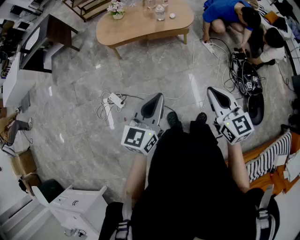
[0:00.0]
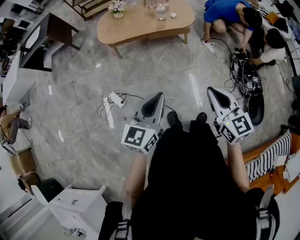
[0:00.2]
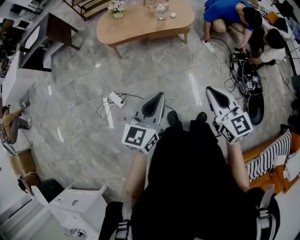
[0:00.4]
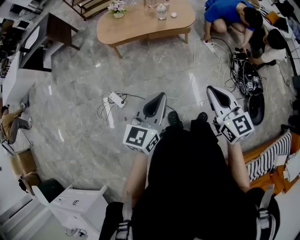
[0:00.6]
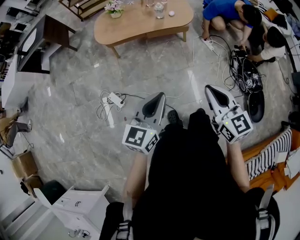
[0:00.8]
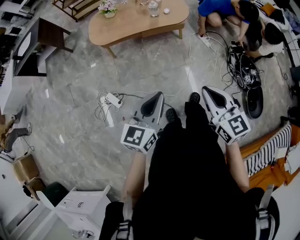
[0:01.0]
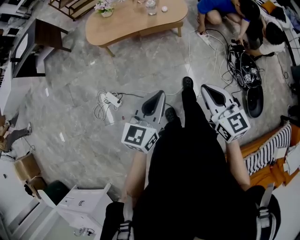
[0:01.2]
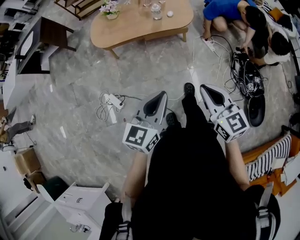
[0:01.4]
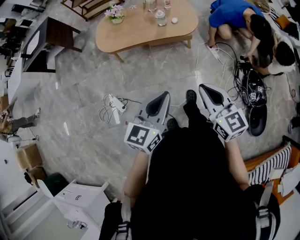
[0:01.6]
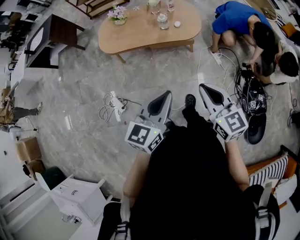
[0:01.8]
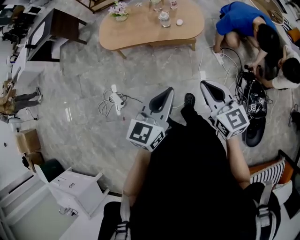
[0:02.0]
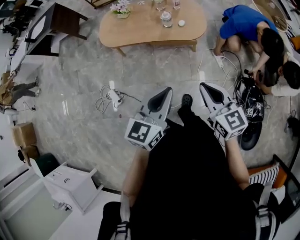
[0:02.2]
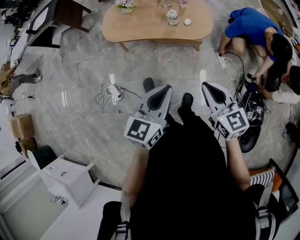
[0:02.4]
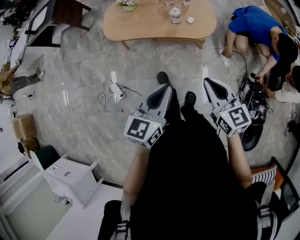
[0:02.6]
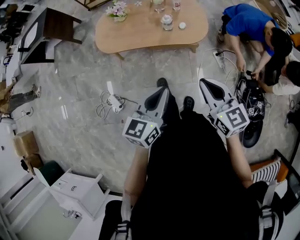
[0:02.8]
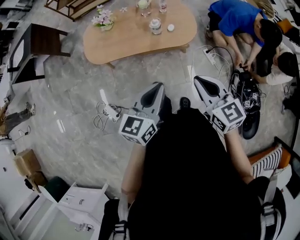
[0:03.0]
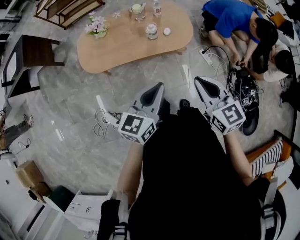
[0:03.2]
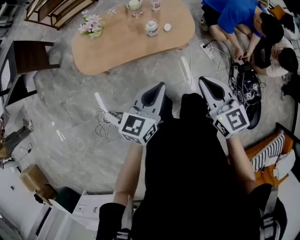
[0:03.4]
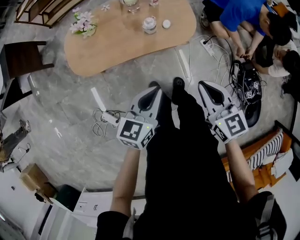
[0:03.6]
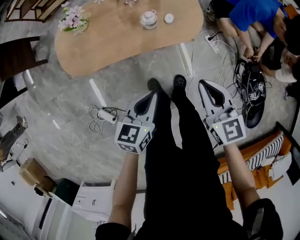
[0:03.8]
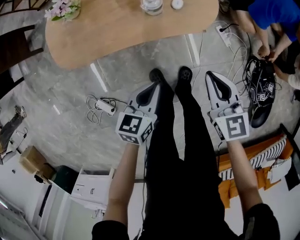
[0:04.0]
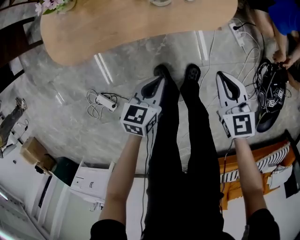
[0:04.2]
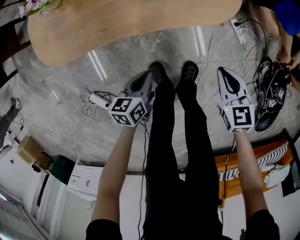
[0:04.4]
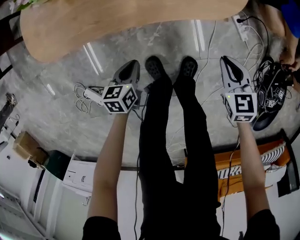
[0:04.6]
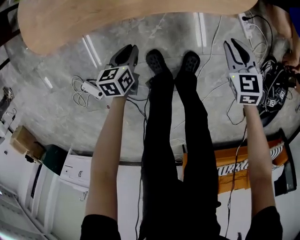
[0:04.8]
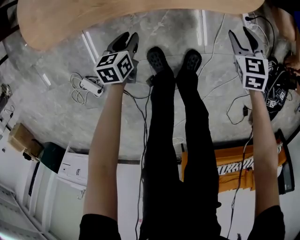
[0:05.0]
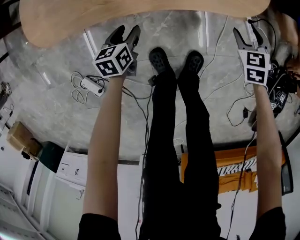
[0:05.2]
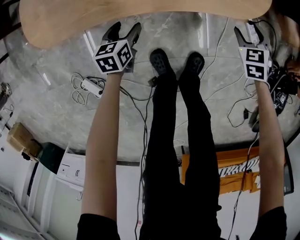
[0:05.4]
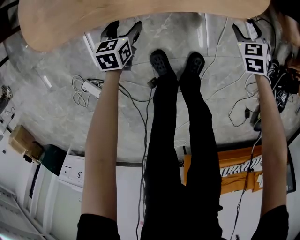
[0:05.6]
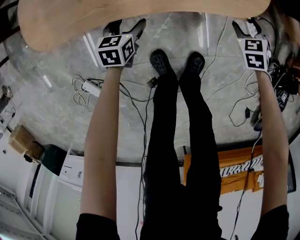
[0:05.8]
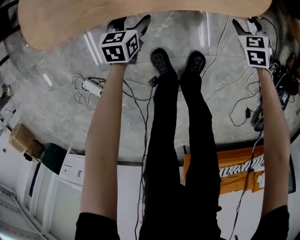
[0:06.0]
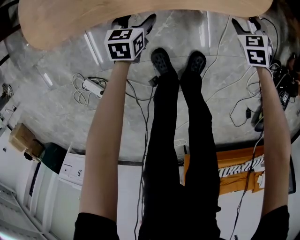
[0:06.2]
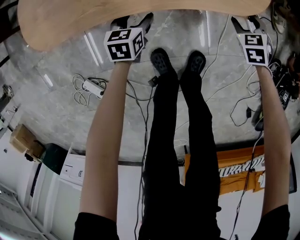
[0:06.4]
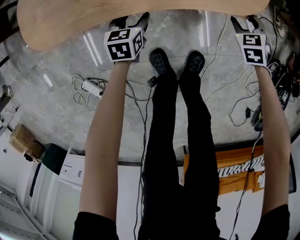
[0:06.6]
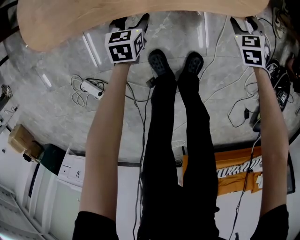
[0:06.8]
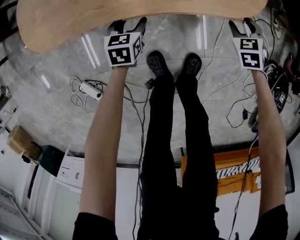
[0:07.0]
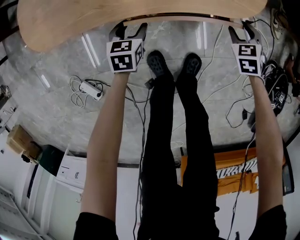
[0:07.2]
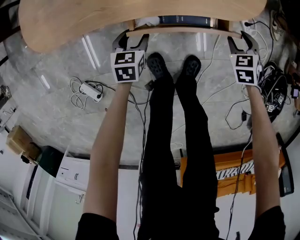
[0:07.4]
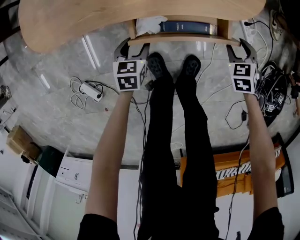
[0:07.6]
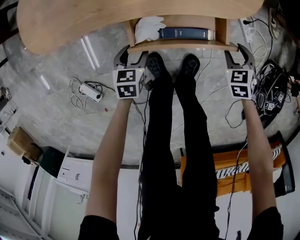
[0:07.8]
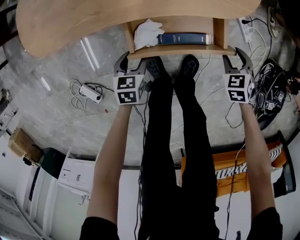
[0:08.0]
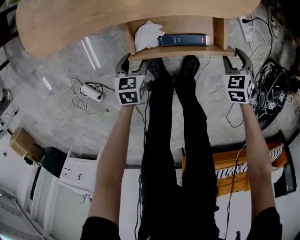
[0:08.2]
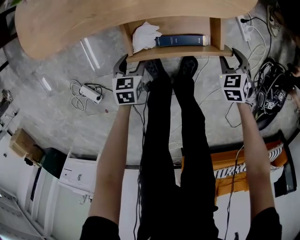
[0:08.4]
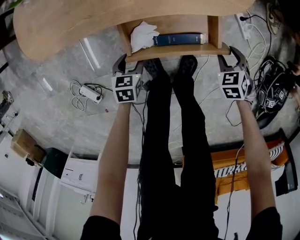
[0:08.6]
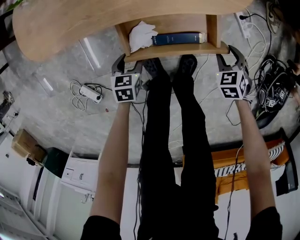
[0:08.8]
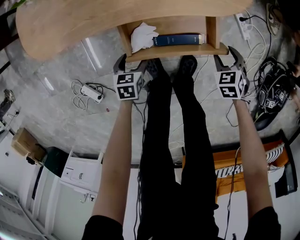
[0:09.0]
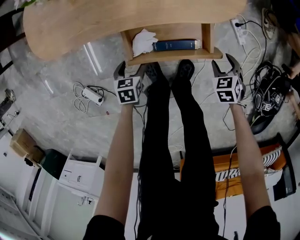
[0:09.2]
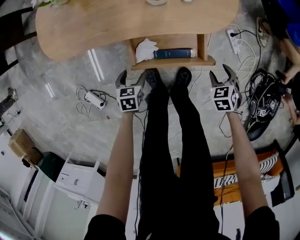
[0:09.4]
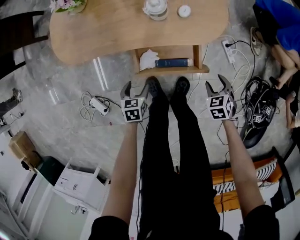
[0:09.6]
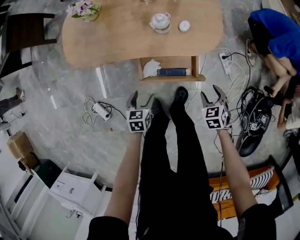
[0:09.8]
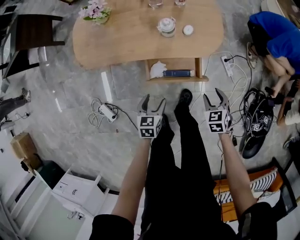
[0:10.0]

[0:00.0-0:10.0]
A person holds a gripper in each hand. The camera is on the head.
0:00.0 to 0:01.4: The right gripper is displaced forward by roughly 10 cm. Meanwhile the left gripper moves forward and to the right, roughly 10 cm.
0:01.4 to 0:02.8: Both grippers travel together forward, roughly 25 cm.
0:02.8 to 0:04.2: The two grippers go roughly 50 cm downward and forward. The right gripper turns by some 20 degrees, while the left gripper rotates about 30 degrees.
0:04.2 to 0:05.8: The right gripper shifts approximately 30 cm downward and forward, swivels roughly 40 degrees, and opens its fingers. Meanwhile the left gripper goes roughly 30 cm downward, to the left and forward, and opens its fingers.
0:05.8 to 0:07.2: The grippers make only small movements.
0:07.2 to 0:08.6: Both grippers travel together backward, about 10 cm.
0:08.6 to 0:10.0: Both grippers travel together upward, some 25 cm.

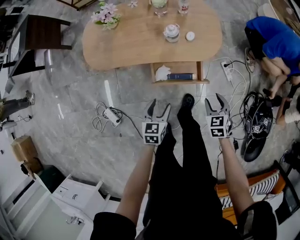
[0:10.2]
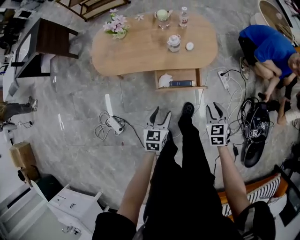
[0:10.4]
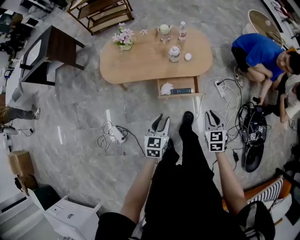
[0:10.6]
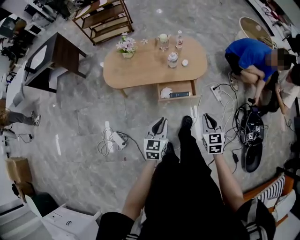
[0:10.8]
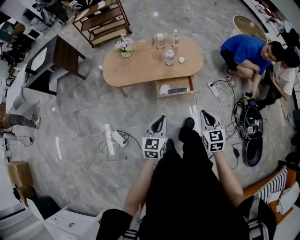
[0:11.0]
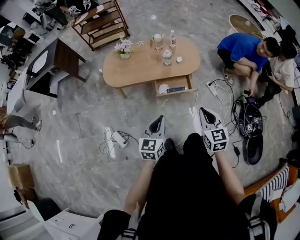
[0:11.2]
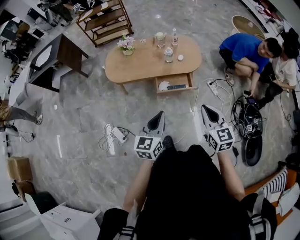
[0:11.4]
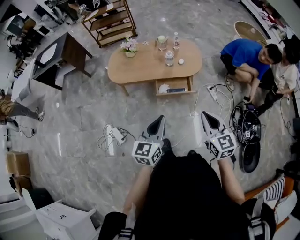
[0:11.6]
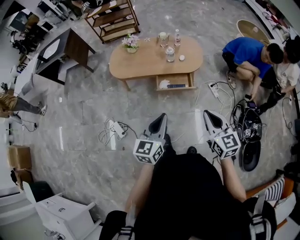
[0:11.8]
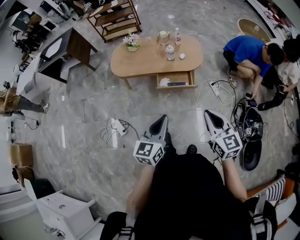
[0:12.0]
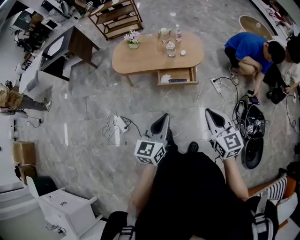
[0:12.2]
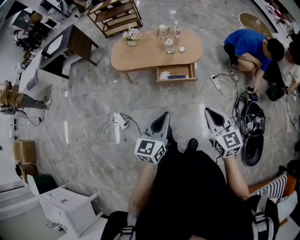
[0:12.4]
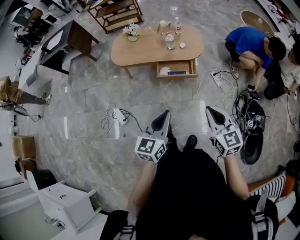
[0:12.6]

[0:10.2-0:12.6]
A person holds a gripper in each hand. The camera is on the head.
0:10.2 to 0:11.4: The two grippers go about 40 cm upward and backward. The left gripper swivels some 30 degrees, and closes. Meanwhile the right gripper tilts its fingers approximately 30 degrees upward, and closes up.
0:11.4 to 0:12.6: The grippers both shift backward and to the right by about 15 cm.

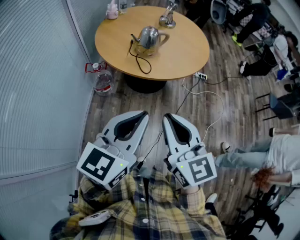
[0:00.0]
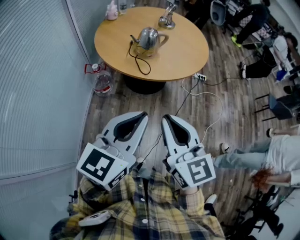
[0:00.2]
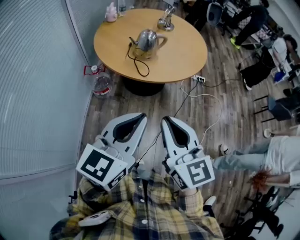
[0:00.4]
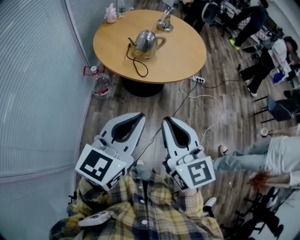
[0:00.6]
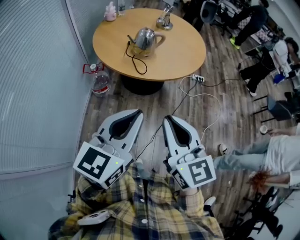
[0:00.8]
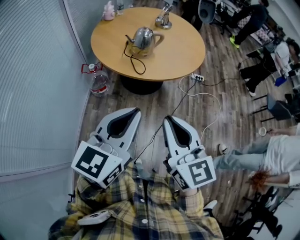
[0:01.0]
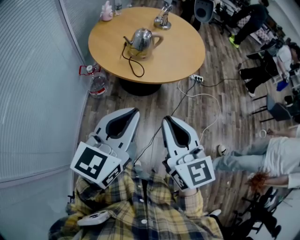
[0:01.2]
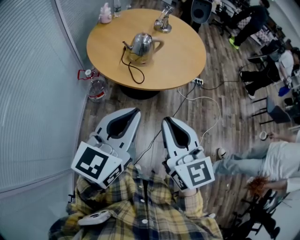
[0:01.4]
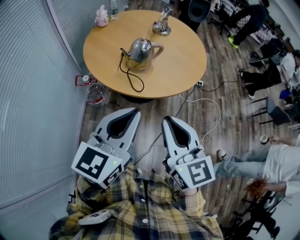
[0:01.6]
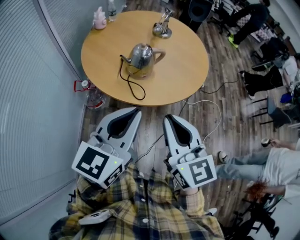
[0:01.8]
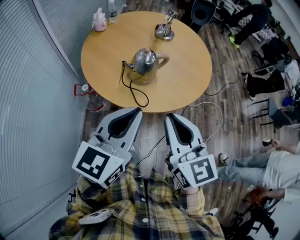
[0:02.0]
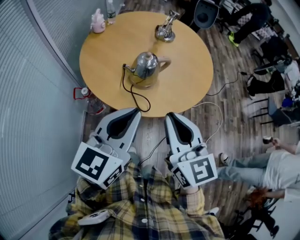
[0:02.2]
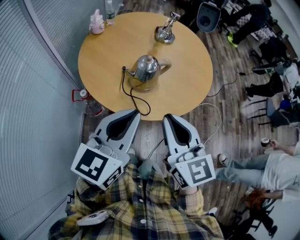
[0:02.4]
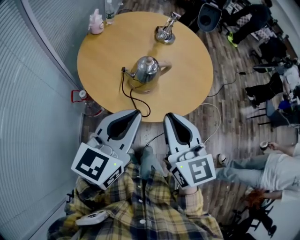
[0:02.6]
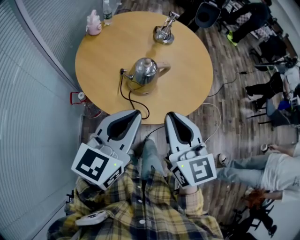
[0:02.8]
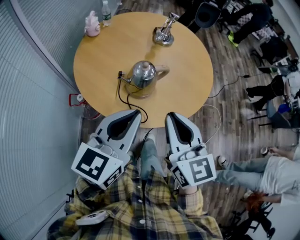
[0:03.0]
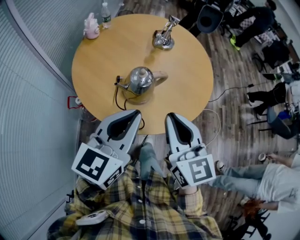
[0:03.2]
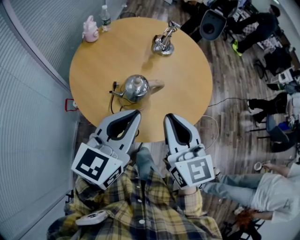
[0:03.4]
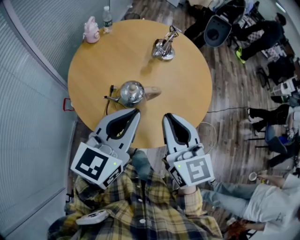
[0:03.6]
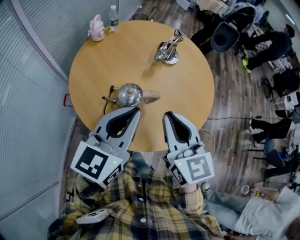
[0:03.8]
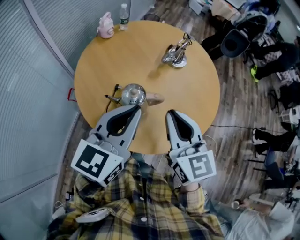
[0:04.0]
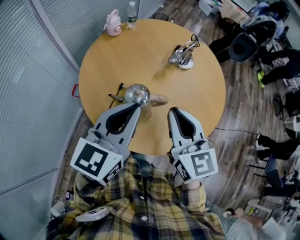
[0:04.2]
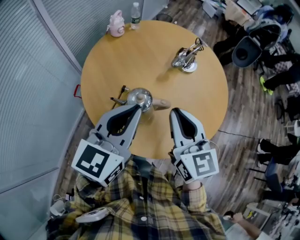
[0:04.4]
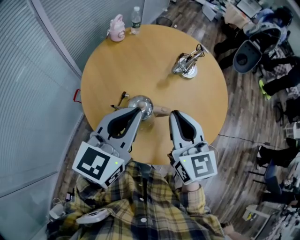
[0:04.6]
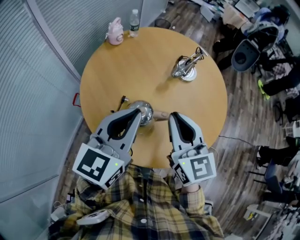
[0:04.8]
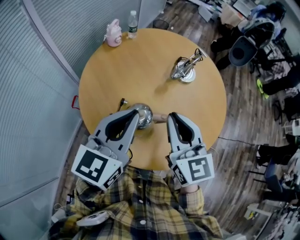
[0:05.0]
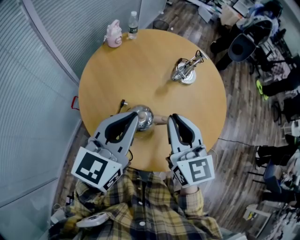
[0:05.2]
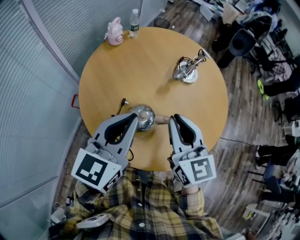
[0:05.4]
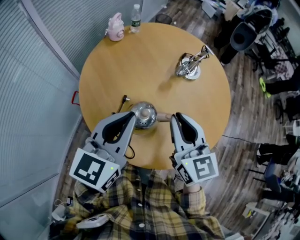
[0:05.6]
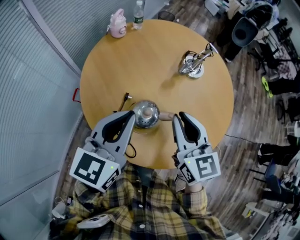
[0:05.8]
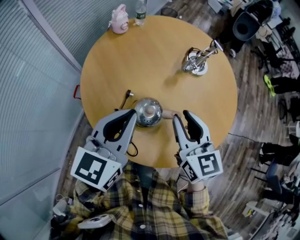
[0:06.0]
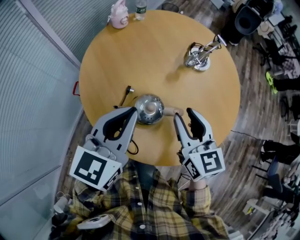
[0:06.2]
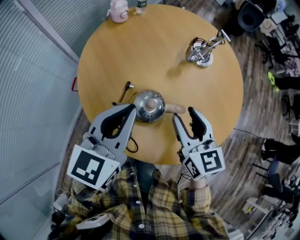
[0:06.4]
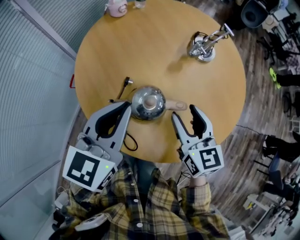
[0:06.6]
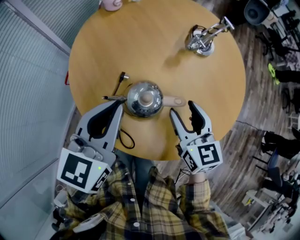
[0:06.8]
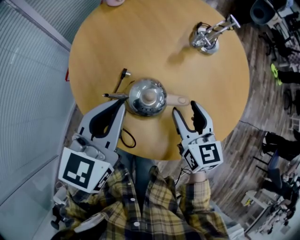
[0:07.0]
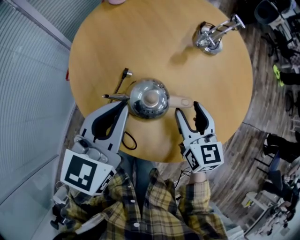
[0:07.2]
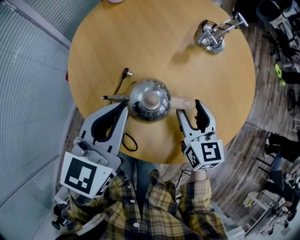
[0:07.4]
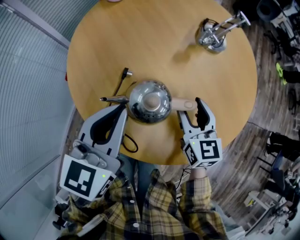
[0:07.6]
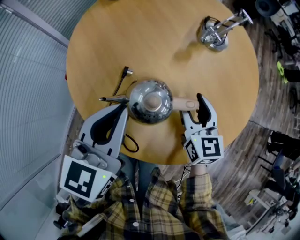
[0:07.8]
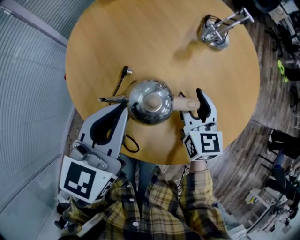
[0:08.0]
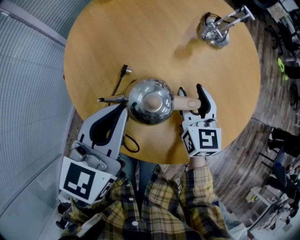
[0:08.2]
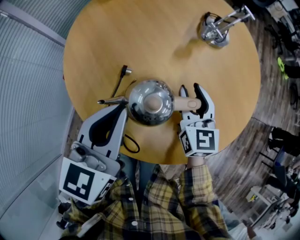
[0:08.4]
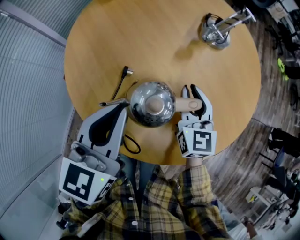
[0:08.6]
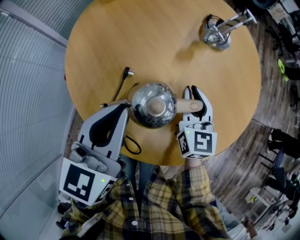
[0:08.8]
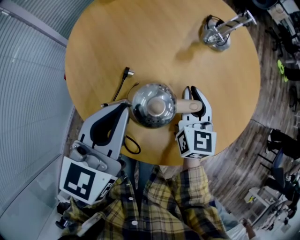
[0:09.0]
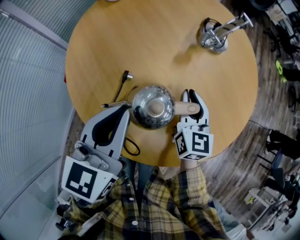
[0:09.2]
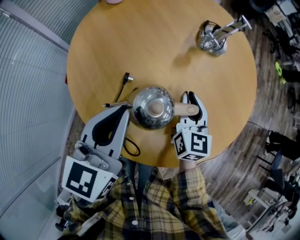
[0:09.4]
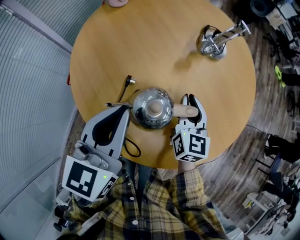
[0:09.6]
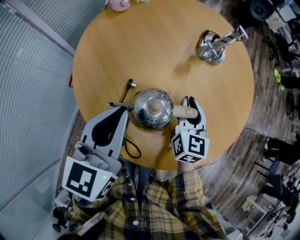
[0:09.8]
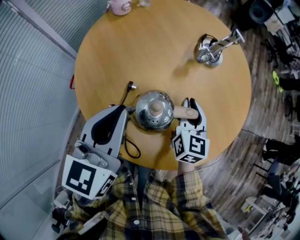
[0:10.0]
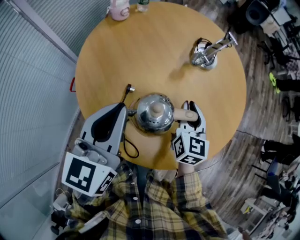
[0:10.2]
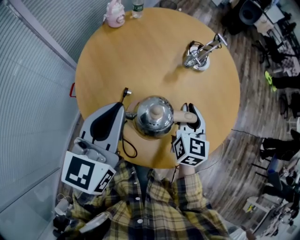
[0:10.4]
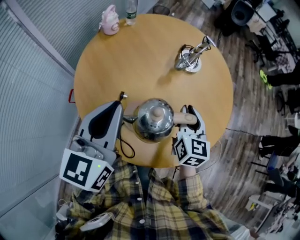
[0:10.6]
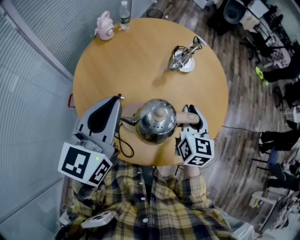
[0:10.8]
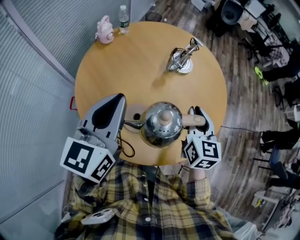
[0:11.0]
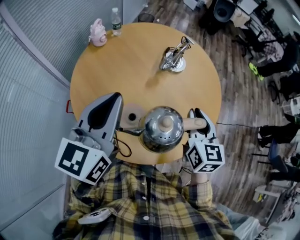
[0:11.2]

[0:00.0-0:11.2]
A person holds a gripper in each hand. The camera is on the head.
0:00.0 to 0:01.6: The two grippers go some 15 cm forward.
0:01.6 to 0:03.2: The grippers both shift forward by about 25 cm.
0:03.2 to 0:04.8: The two grippers go approximately 15 cm forward. The left gripper turns by roughly 20 degrees.
0:04.8 to 0:06.4: The two grippers go some 10 cm downward. The right gripper opens its fingers.
0:06.4 to 0:08.0: The left gripper shifts some 10 cm downward. The right gripper goes roughly 15 cm downward and forward.
0:08.0 to 0:09.6: The right gripper closes.
0:09.6 to 0:11.2: The left gripper shifts some 15 cm upward. The right gripper shifts some 20 cm upward and to the right.
